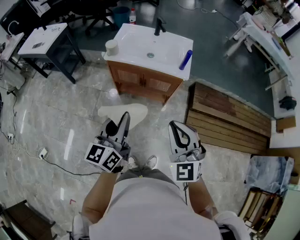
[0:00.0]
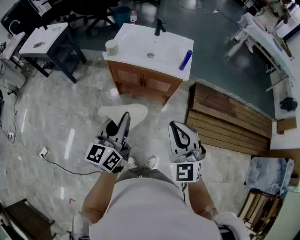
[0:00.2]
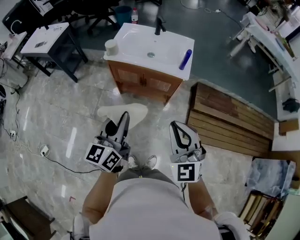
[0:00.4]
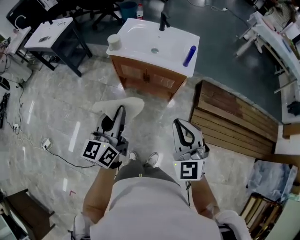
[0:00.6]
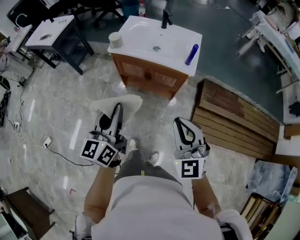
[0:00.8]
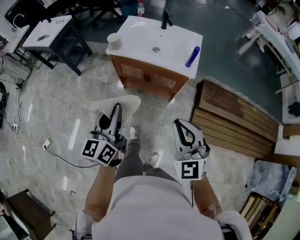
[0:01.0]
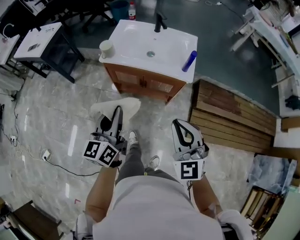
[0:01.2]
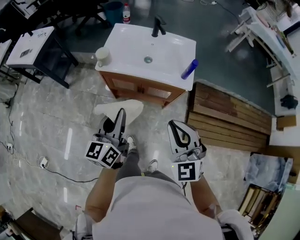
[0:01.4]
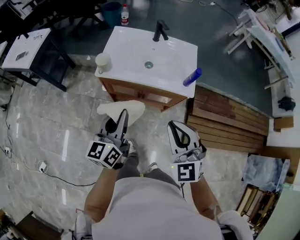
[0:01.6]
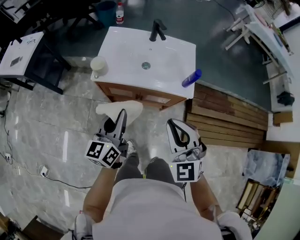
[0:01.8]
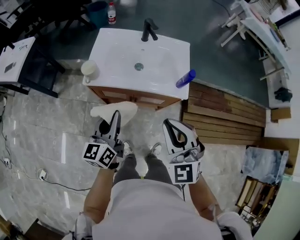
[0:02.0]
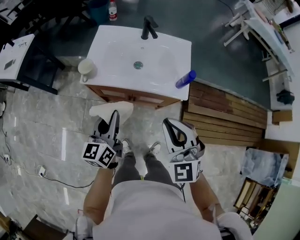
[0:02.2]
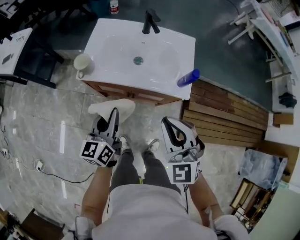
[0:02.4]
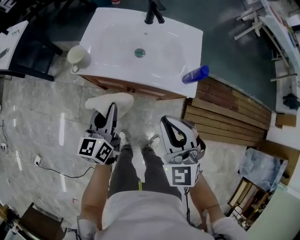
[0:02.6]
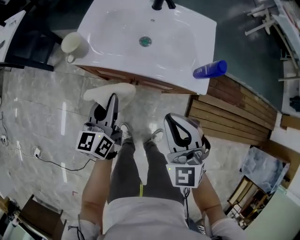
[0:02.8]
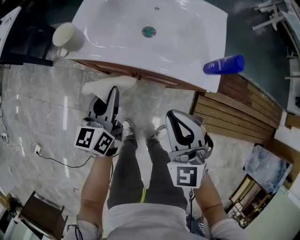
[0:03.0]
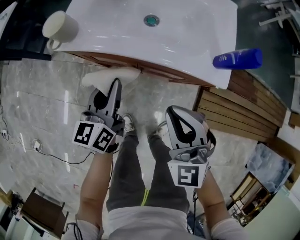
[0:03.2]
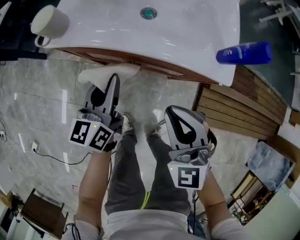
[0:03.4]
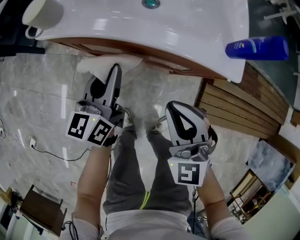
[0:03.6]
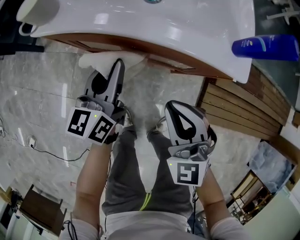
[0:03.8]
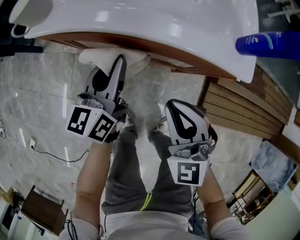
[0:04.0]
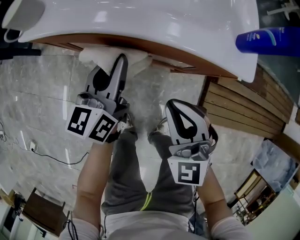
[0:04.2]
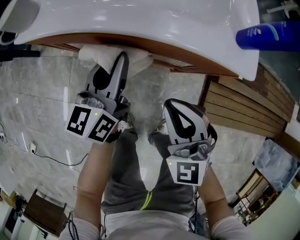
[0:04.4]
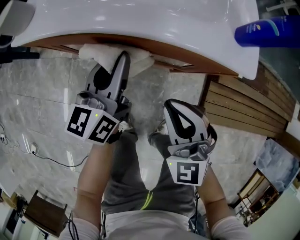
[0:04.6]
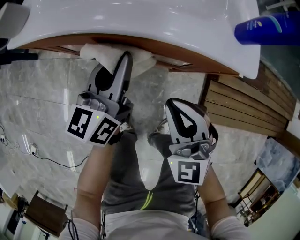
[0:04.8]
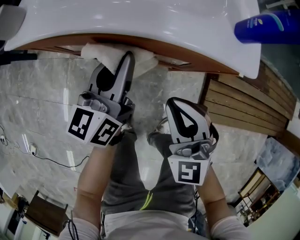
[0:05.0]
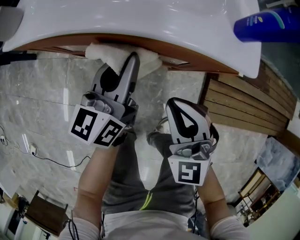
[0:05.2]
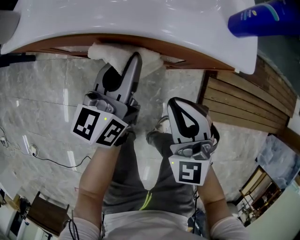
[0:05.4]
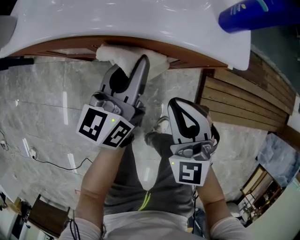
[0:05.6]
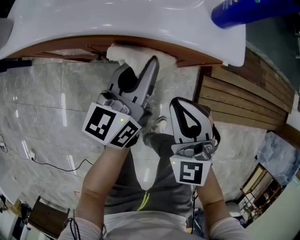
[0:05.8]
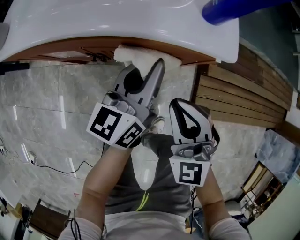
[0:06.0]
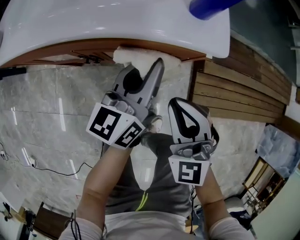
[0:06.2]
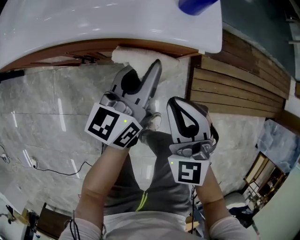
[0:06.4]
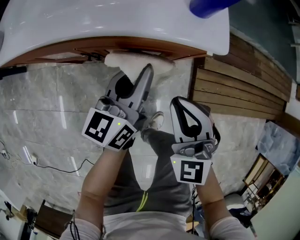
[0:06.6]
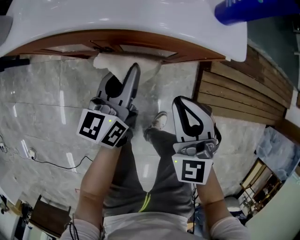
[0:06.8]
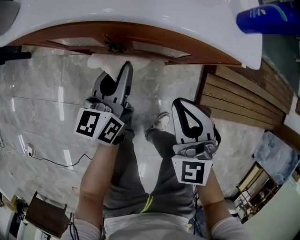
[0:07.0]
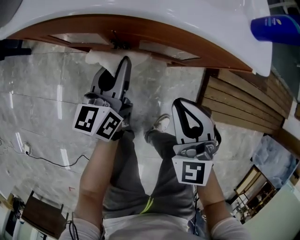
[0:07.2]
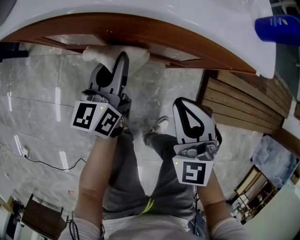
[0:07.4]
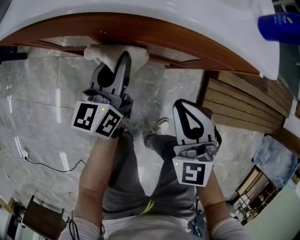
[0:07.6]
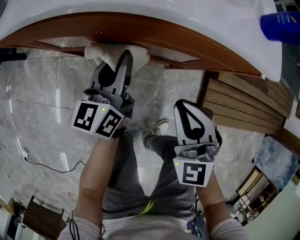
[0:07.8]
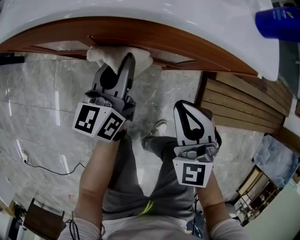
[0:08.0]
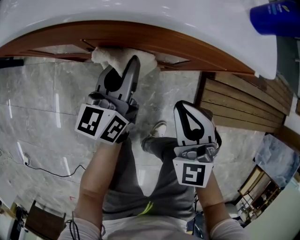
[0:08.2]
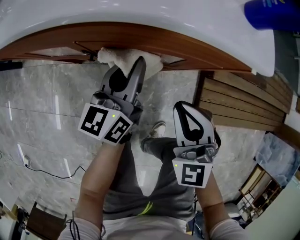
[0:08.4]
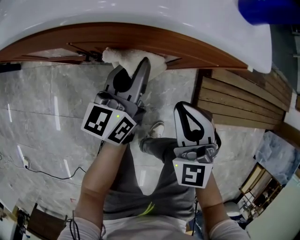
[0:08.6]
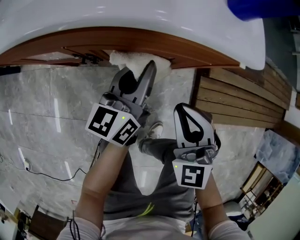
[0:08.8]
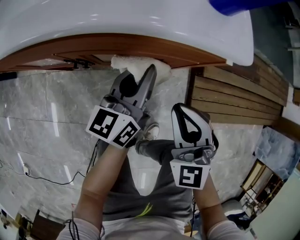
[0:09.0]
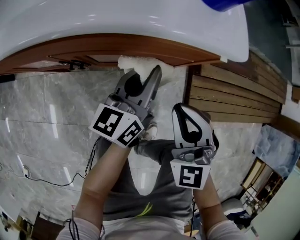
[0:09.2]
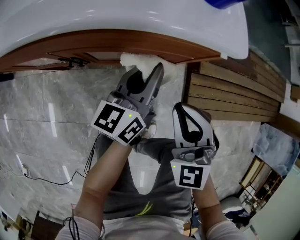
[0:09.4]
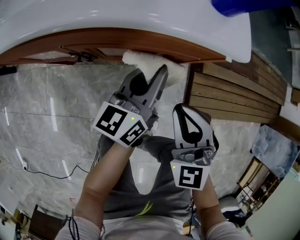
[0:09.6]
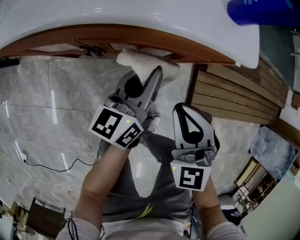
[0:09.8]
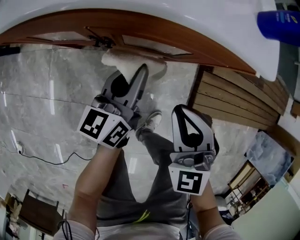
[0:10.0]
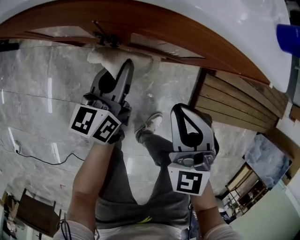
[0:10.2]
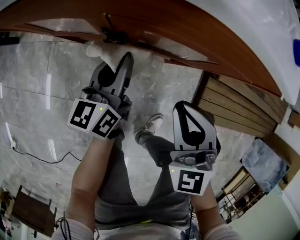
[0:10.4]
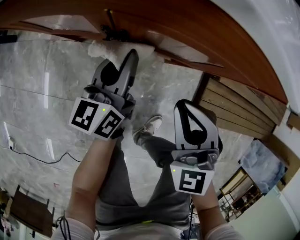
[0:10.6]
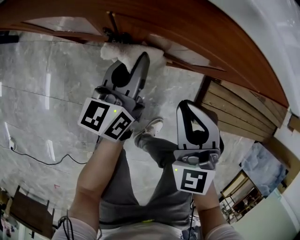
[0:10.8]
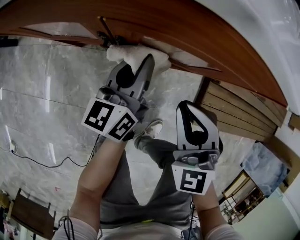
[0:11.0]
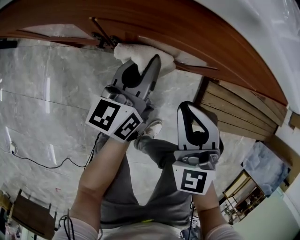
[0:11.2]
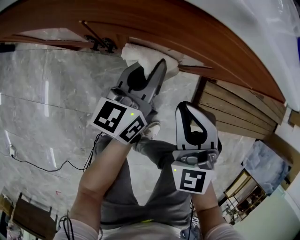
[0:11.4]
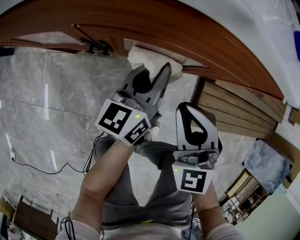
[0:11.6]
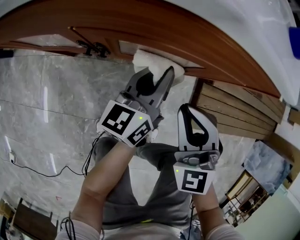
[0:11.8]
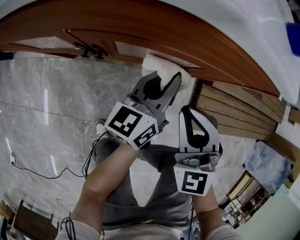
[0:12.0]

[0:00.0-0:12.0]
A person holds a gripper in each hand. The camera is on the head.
0:00.0 to 0:01.6: Both grippers travel together forward, roughly 20 cm.
0:01.6 to 0:03.0: Both grippers travel together downward and forward, some 25 cm.
0:03.0 to 0:04.4: The right gripper travels downward by roughly 20 cm. The left gripper heads downward and to the right, covering roughly 15 cm.
0:04.4 to 0:06.0: The left gripper heads to the right, covering approximately 15 cm. The right gripper is displaced to the right by approximately 10 cm.
0:06.0 to 0:07.6: The right gripper travels downward and to the left by approximately 10 cm. Meanwhile the left gripper goes approximately 20 cm to the left and downward.
0:07.6 to 0:09.0: The right gripper is displaced to the right by some 10 cm; the left gripper is displaced to the right by roughly 15 cm.
0:09.0 to 0:10.4: The left gripper moves to the left, some 15 cm. Meanwhile the right gripper heads to the left, covering some 10 cm.
0:10.4 to 0:12.0: The right gripper travels to the right by roughly 5 cm, while the left gripper is displaced to the right by roughly 15 cm.

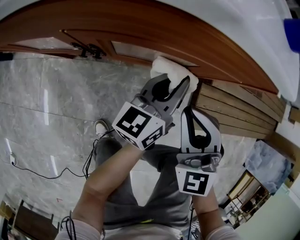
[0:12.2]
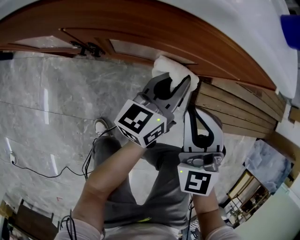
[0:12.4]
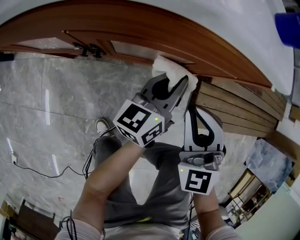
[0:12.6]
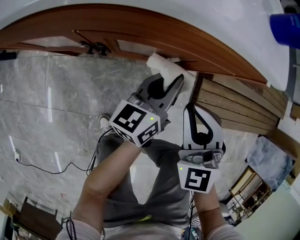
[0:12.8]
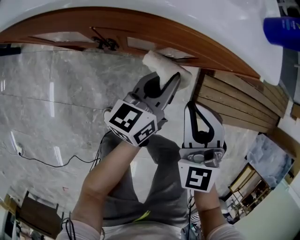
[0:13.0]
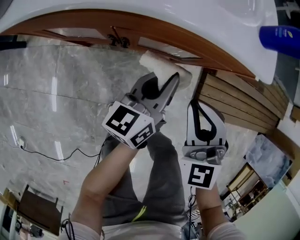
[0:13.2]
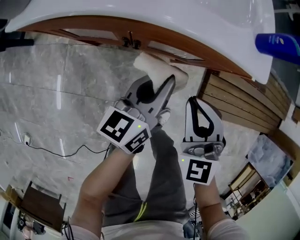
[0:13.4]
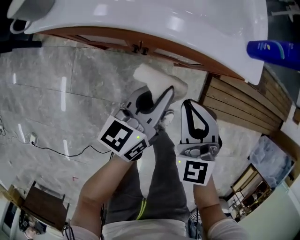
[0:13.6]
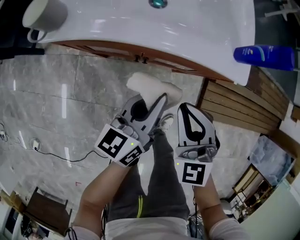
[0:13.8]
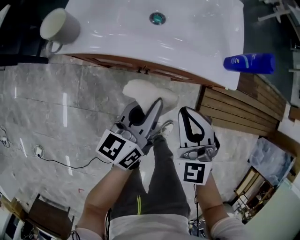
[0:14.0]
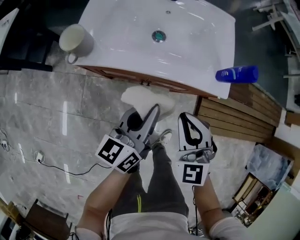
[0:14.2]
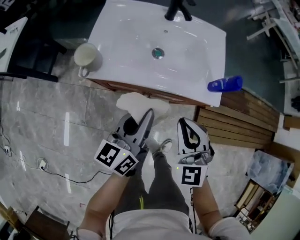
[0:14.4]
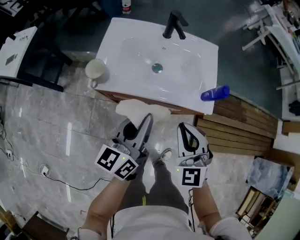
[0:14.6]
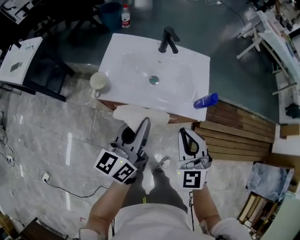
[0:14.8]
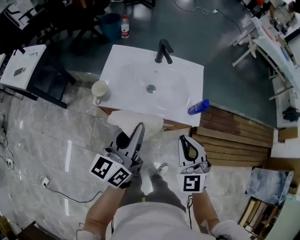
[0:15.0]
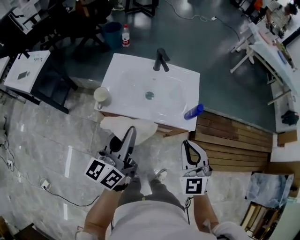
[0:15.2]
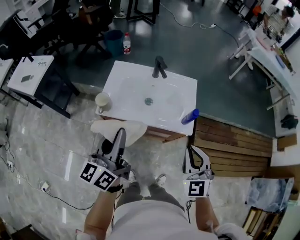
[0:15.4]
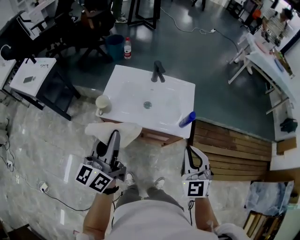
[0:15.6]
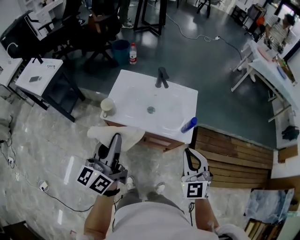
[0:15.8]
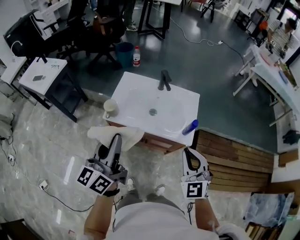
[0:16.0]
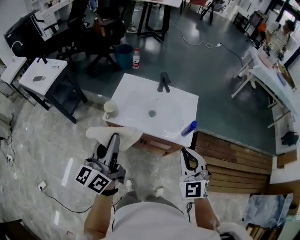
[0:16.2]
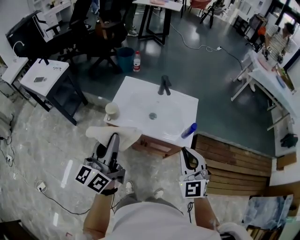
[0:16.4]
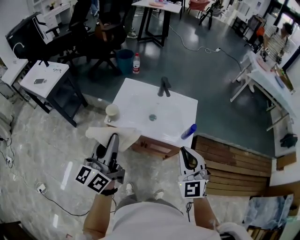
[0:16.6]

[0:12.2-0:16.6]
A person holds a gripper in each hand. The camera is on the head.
0:12.2 to 0:13.6: Both grippers move upward and to the left, roughly 20 cm.
0:13.6 to 0:15.2: The two grippers go some 40 cm upward.
0:15.2 to 0:16.6: The left gripper is displaced upward, backward and to the left by roughly 15 cm; the right gripper heads upward, covering about 10 cm.

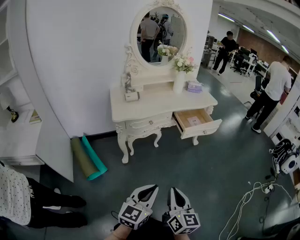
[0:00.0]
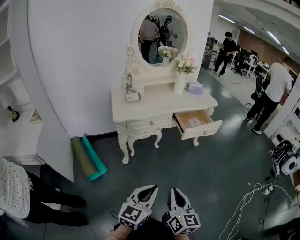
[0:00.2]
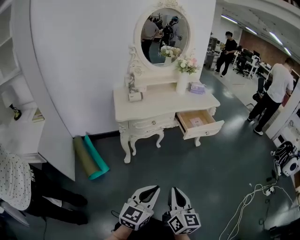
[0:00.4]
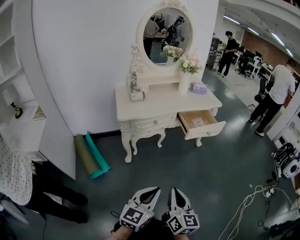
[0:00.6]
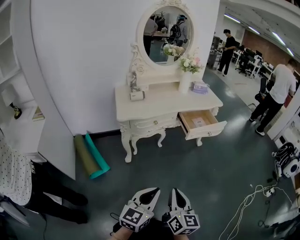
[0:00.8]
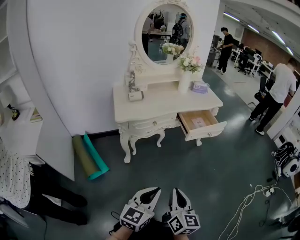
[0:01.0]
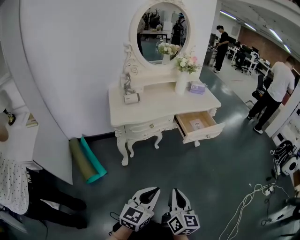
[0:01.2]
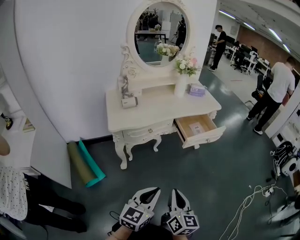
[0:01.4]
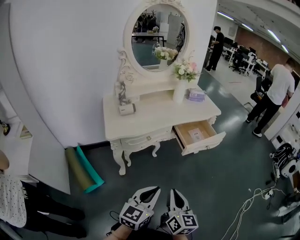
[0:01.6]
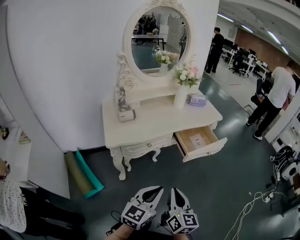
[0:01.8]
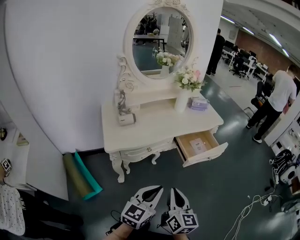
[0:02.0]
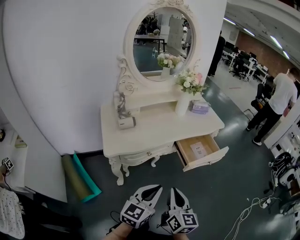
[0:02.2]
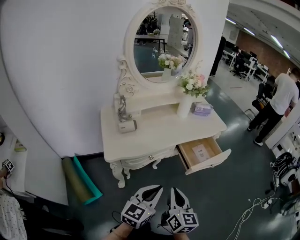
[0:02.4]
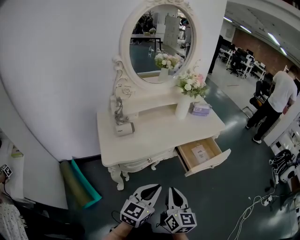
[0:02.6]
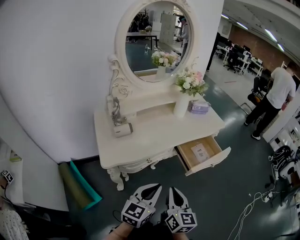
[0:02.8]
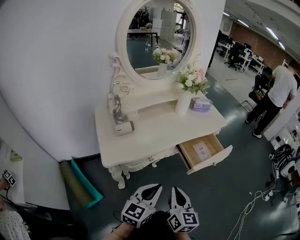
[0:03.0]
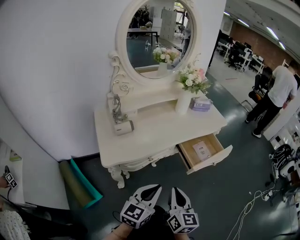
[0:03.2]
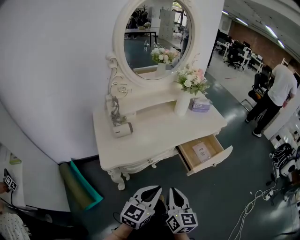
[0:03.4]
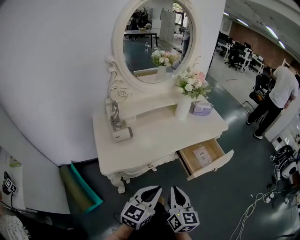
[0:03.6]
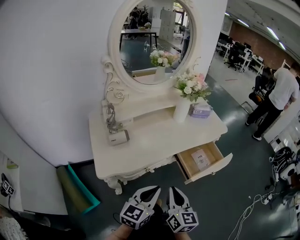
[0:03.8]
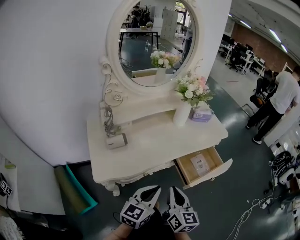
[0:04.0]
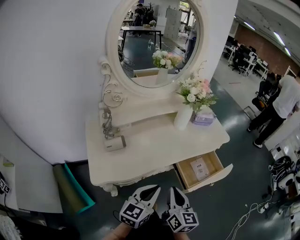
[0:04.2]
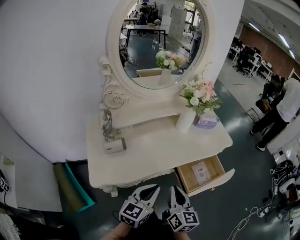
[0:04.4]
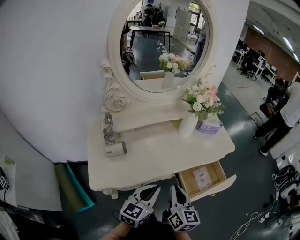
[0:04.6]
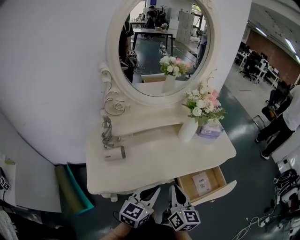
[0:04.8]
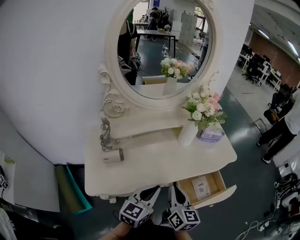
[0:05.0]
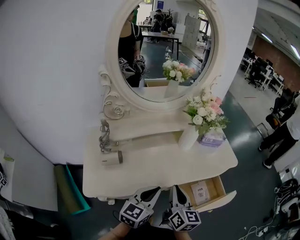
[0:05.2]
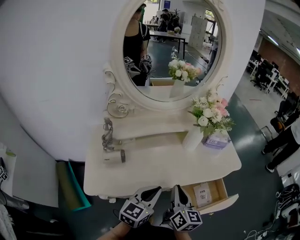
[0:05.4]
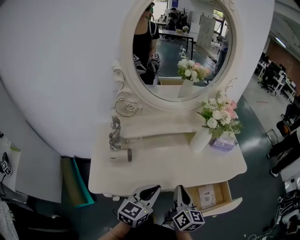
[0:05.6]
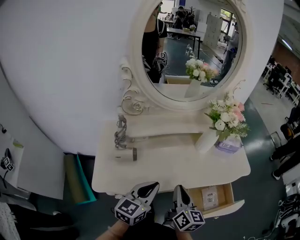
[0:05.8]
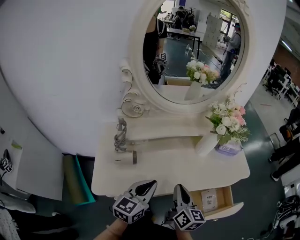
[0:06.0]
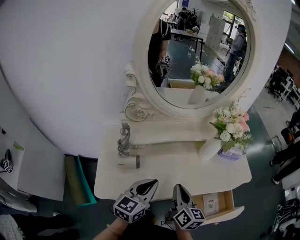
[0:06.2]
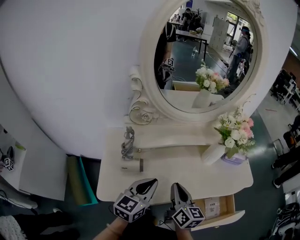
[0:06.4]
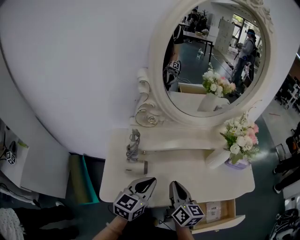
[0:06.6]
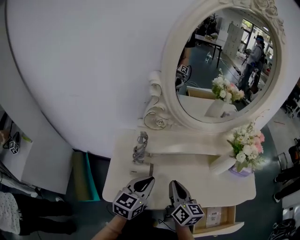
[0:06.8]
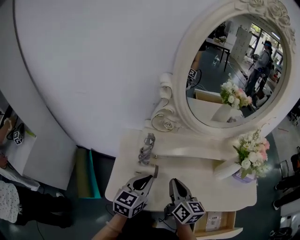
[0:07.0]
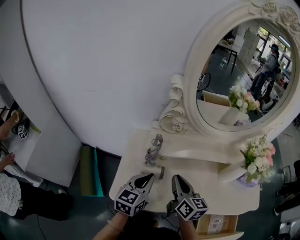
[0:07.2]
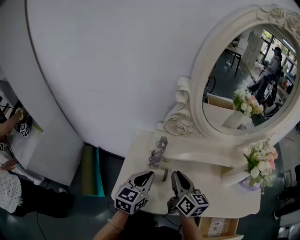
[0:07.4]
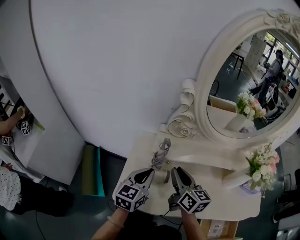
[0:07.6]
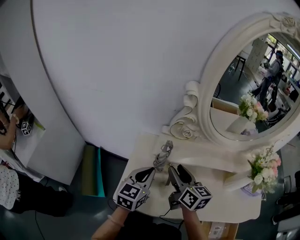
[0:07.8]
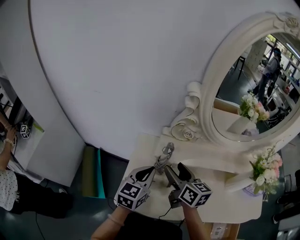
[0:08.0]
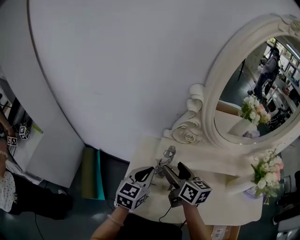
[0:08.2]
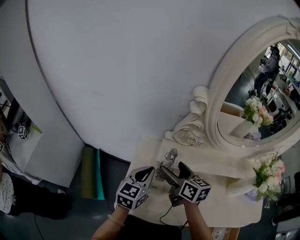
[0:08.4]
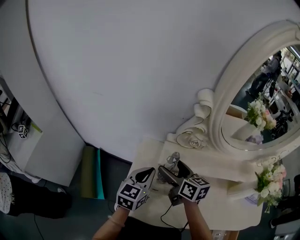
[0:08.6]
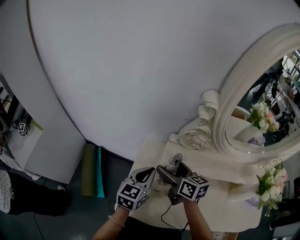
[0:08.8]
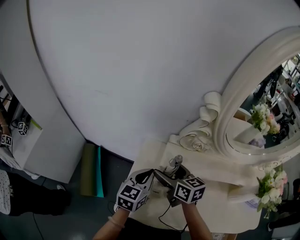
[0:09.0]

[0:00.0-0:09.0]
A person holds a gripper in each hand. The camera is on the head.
0:00.0 to 0:01.6: Both grippers move forward, approximately 15 cm.
0:01.6 to 0:03.0: Both grippers move forward and to the left, roughly 15 cm.
0:03.0 to 0:04.4: Both grippers move forward, some 15 cm.
0:04.4 to 0:06.0: The right gripper moves forward, about 15 cm. The left gripper travels forward and to the left by roughly 15 cm.
0:06.0 to 0:07.6: The left gripper moves approximately 20 cm, and rotates approximately 20 degrees. The right gripper ends up about 25 cm from where it was, and turns by some 30 degrees.
0:07.6 to 0:09.0: The left gripper is displaced forward by roughly 5 cm; the right gripper moves to the left and forward, about 15 cm, swivels some 20 degrees, and opens up.
